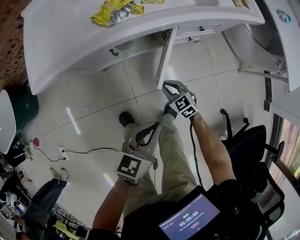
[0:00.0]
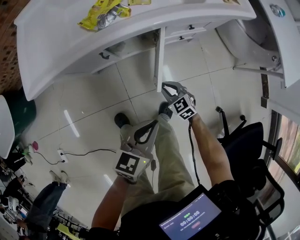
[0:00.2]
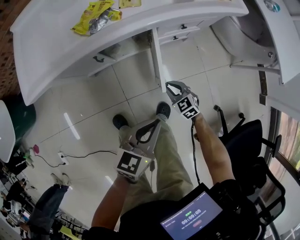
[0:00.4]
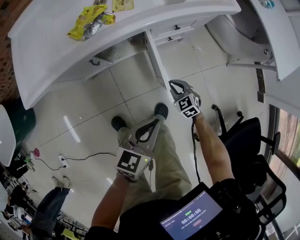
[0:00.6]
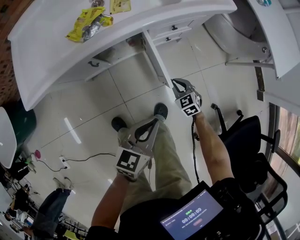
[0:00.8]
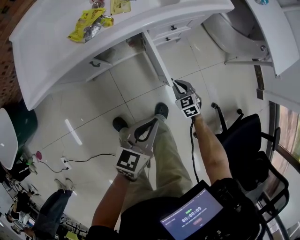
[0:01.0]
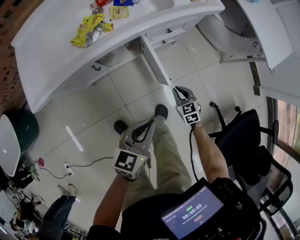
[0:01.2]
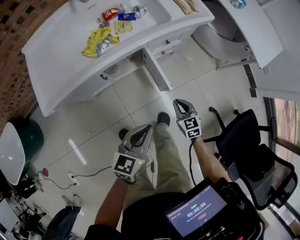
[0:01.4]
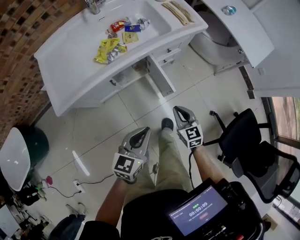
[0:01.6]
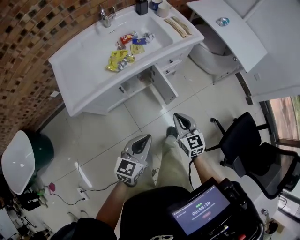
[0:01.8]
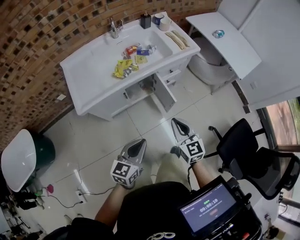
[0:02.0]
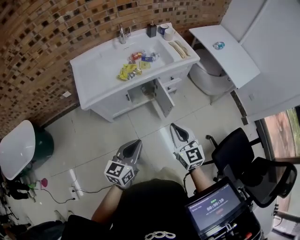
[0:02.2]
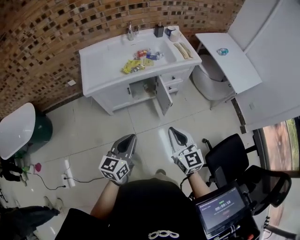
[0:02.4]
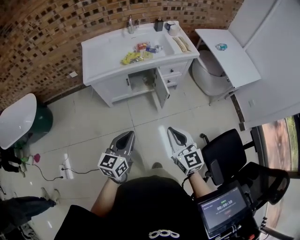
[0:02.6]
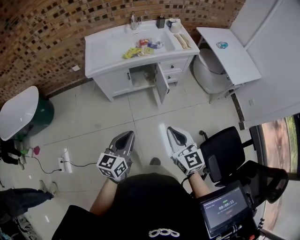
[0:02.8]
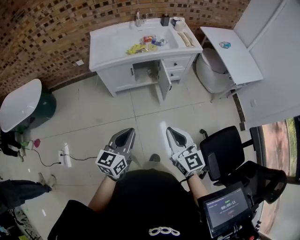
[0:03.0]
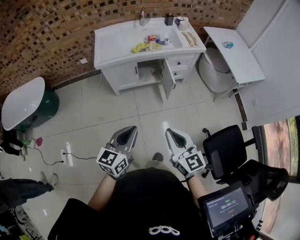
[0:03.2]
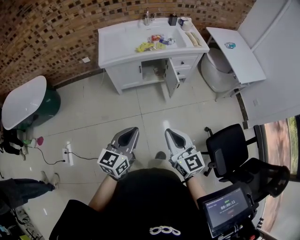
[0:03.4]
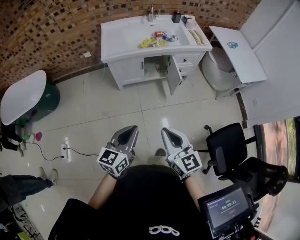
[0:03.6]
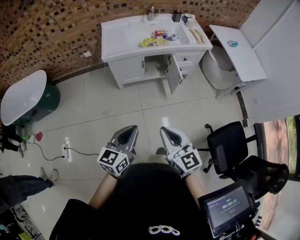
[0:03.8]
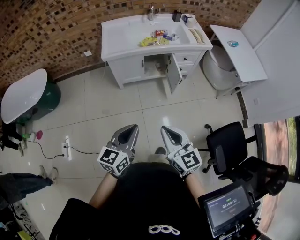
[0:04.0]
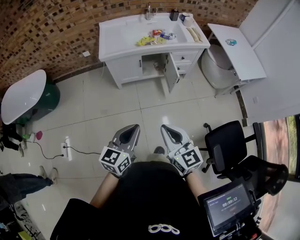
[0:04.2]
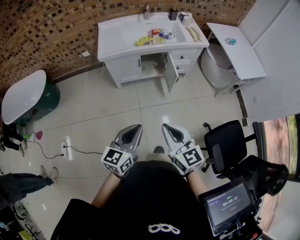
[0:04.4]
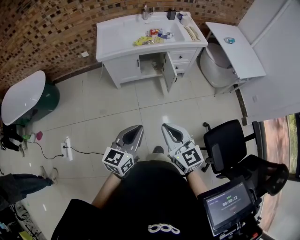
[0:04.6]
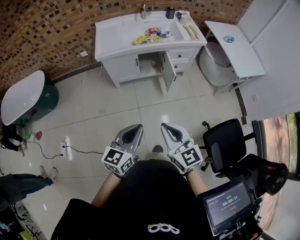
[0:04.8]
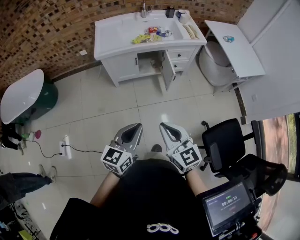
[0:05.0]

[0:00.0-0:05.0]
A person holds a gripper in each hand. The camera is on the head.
0:00.0 to 0:01.6: The left gripper shifts about 15 cm upward. The right gripper moves upward, some 25 cm, and swivels approximately 40 degrees.
0:01.6 to 0:03.4: Both grippers move backward and upward, about 50 cm. The left gripper turns by roughly 20 degrees; the right gripper swivels roughly 30 degrees.
0:03.4 to 0:05.0: The left gripper ends up roughly 5 cm from where it was.

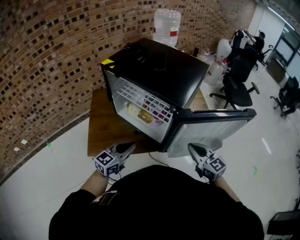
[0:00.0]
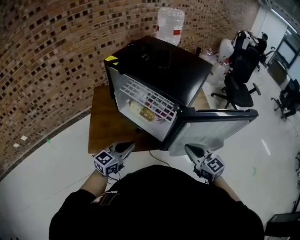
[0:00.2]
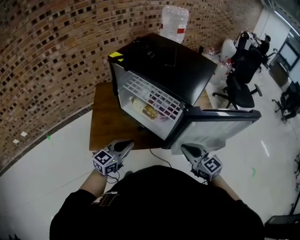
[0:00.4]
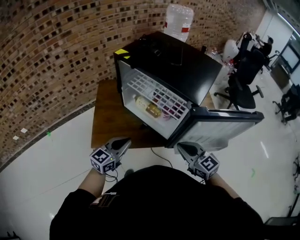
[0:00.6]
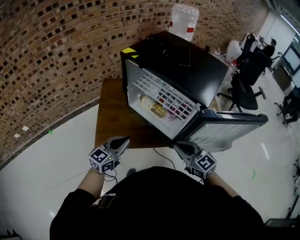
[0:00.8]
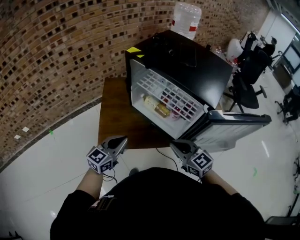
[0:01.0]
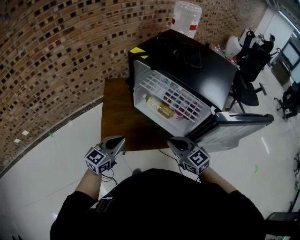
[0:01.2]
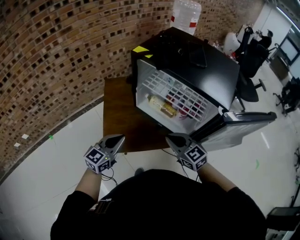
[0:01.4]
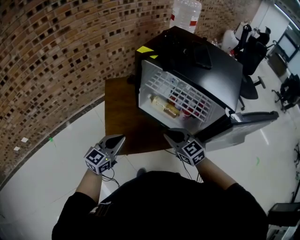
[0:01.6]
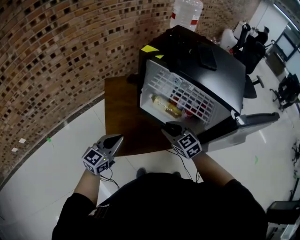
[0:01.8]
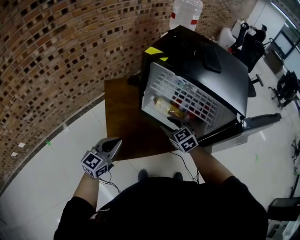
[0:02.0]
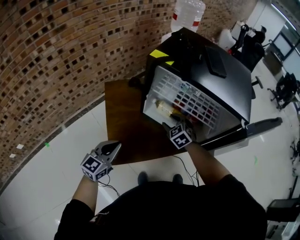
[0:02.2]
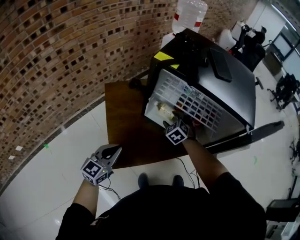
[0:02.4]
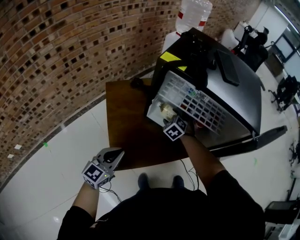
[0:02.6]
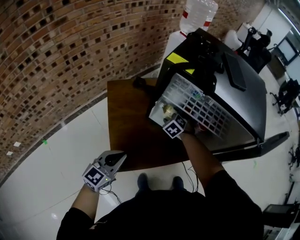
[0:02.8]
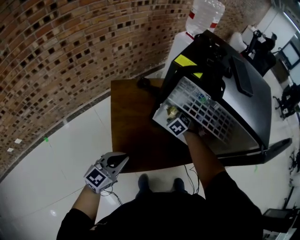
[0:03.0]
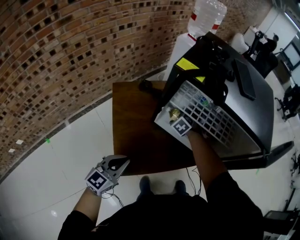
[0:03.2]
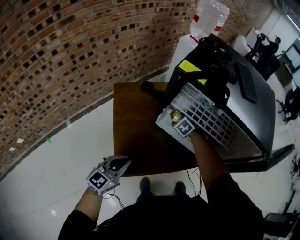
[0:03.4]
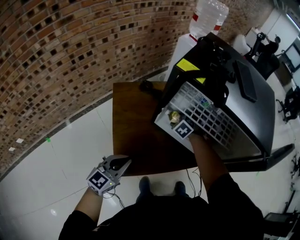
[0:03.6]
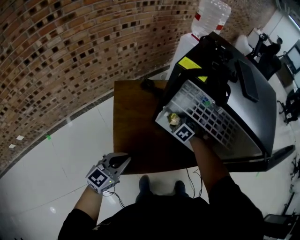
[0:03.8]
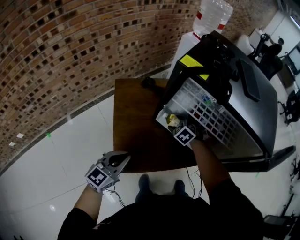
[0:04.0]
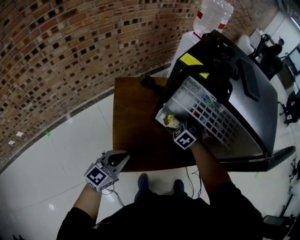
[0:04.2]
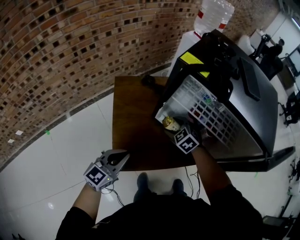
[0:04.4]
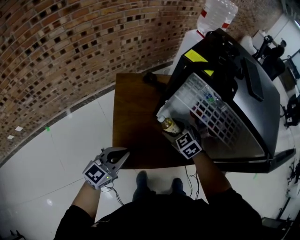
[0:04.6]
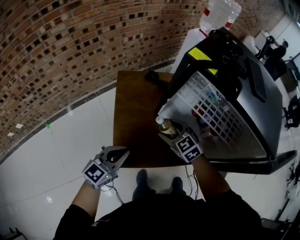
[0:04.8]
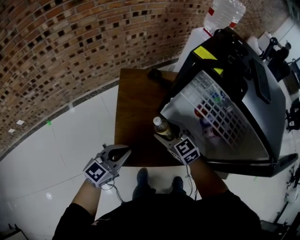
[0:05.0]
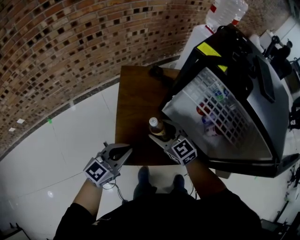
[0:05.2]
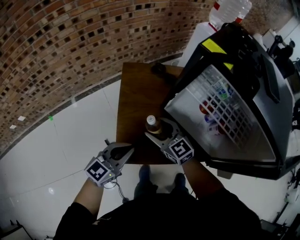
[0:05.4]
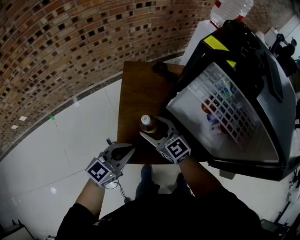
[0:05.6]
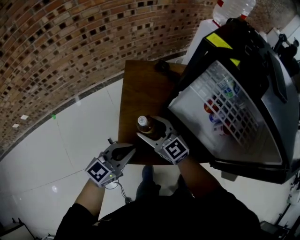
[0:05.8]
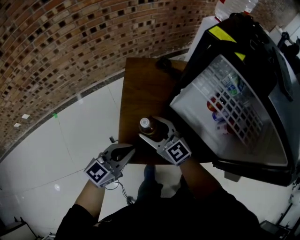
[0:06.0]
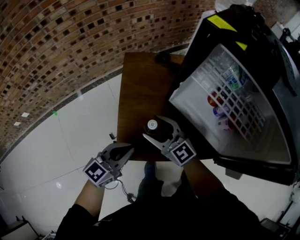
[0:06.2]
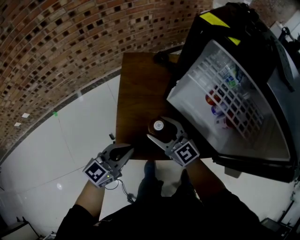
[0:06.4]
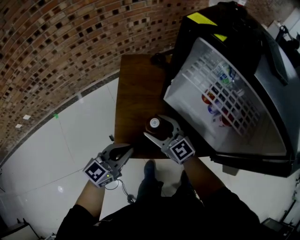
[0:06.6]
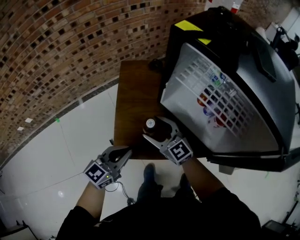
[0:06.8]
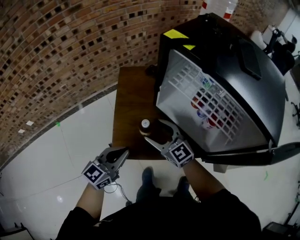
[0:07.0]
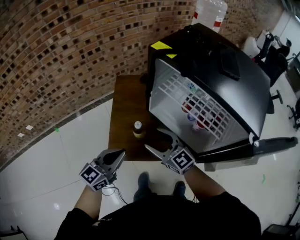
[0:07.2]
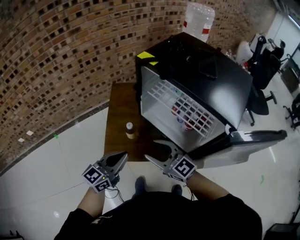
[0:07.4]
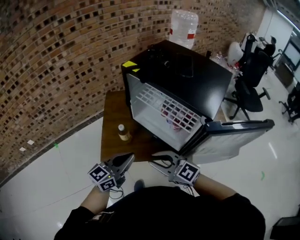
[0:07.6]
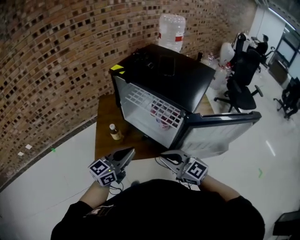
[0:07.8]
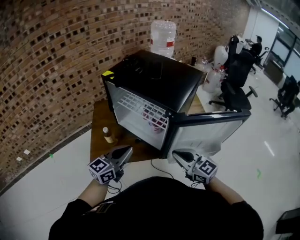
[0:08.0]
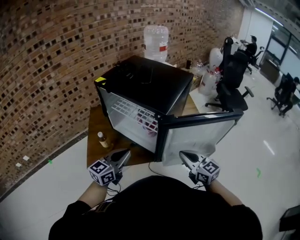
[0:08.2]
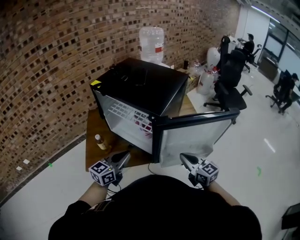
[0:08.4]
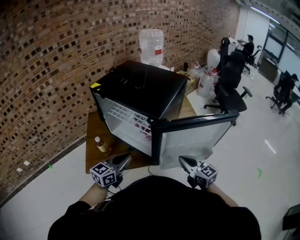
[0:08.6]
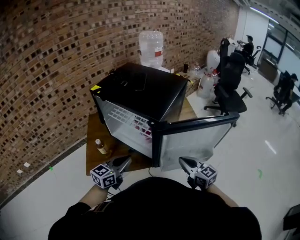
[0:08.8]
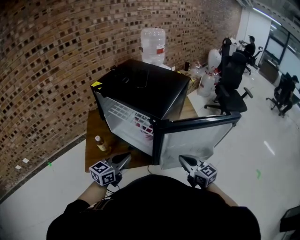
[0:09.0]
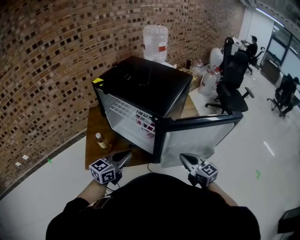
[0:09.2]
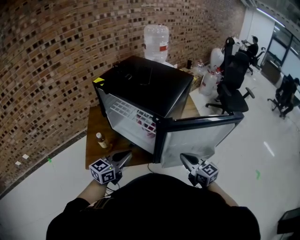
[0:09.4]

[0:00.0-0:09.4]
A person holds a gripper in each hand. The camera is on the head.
0:00.0 to 0:01.6: Both grippers travel together to the left, roughly 25 cm.
0:01.6 to 0:03.2: The left gripper shifts approximately 10 cm to the left and downward; the right gripper shifts some 35 cm forward and downward, tips its fingers downward by some 40 degrees, and opens up.
0:03.2 to 0:04.8: The right gripper goes approximately 20 cm backward, to the left and upward, and turns by about 40 degrees.
0:04.8 to 0:06.2: The right gripper heads to the left, covering some 10 cm, and points its fingers some 30 degrees further upward; the left gripper changes place by roughly 5 cm.
0:06.2 to 0:07.8: The right gripper is displaced backward, to the right and upward by roughly 40 cm, and closes up; the left gripper shifts roughly 35 cm to the right, upward and backward.
0:07.8 to 0:09.4: The right gripper is displaced to the right by approximately 20 cm, and turns by roughly 30 degrees. The left gripper goes about 10 cm to the right.

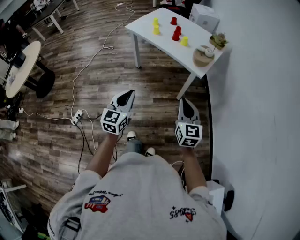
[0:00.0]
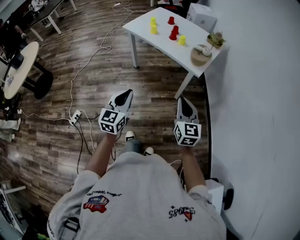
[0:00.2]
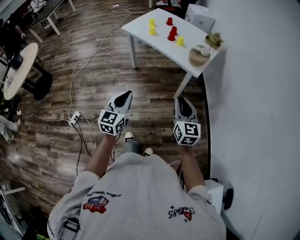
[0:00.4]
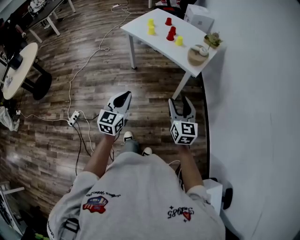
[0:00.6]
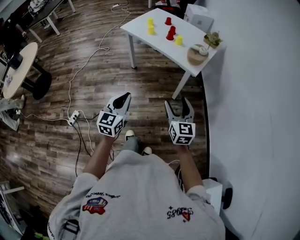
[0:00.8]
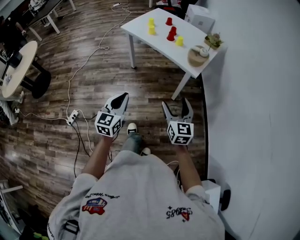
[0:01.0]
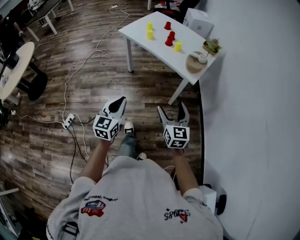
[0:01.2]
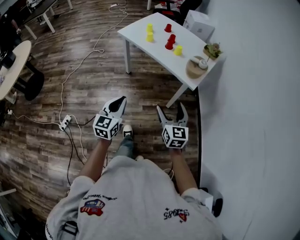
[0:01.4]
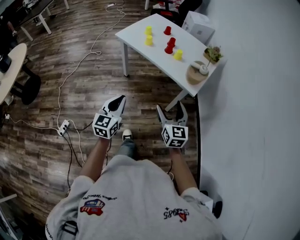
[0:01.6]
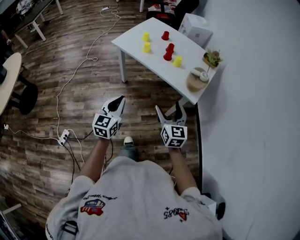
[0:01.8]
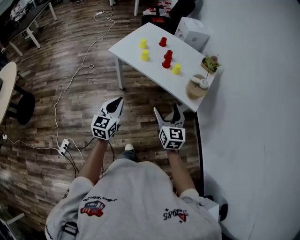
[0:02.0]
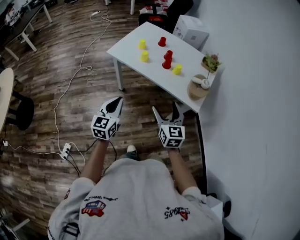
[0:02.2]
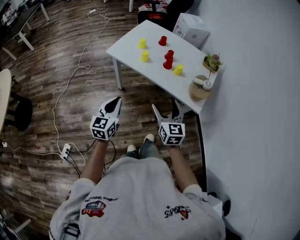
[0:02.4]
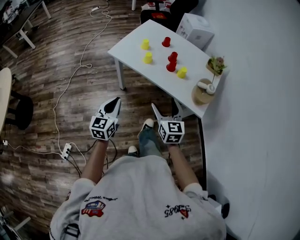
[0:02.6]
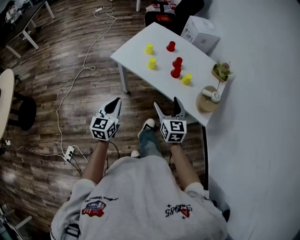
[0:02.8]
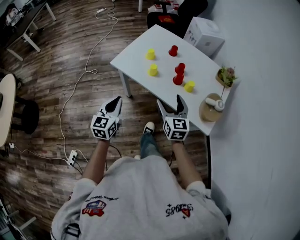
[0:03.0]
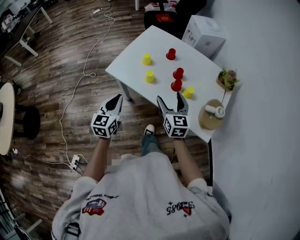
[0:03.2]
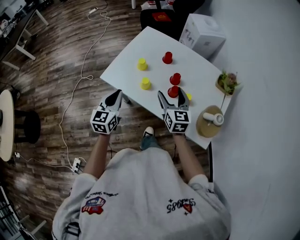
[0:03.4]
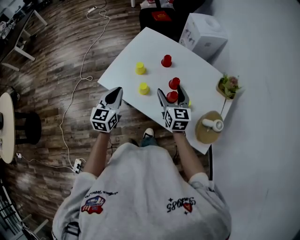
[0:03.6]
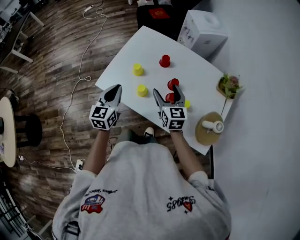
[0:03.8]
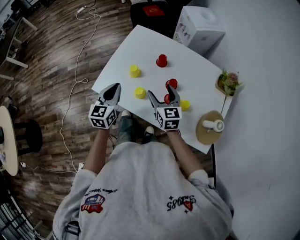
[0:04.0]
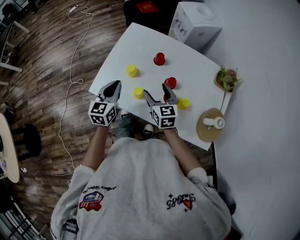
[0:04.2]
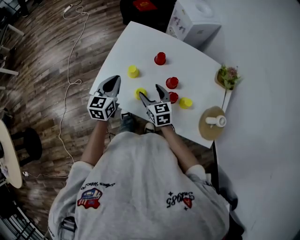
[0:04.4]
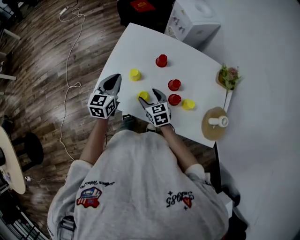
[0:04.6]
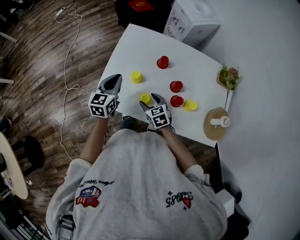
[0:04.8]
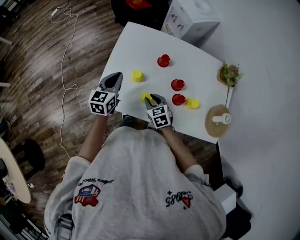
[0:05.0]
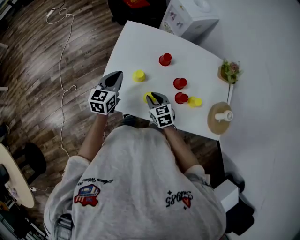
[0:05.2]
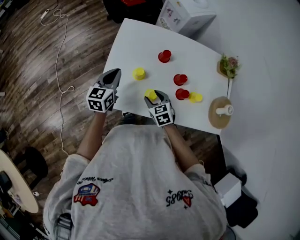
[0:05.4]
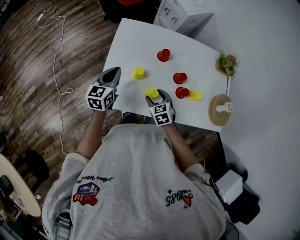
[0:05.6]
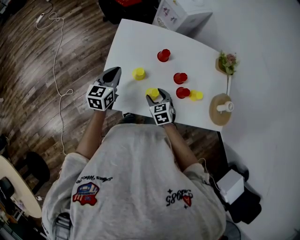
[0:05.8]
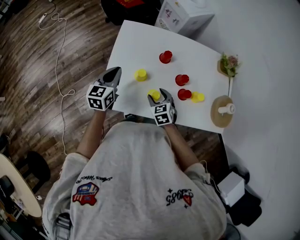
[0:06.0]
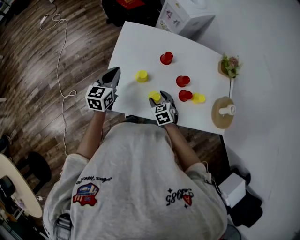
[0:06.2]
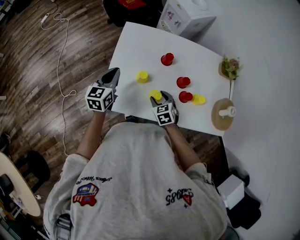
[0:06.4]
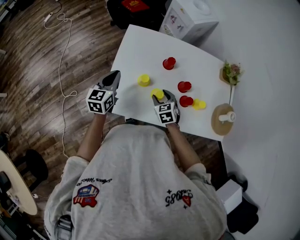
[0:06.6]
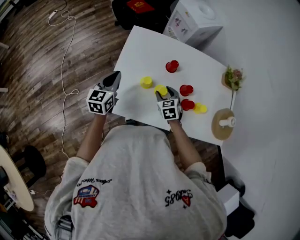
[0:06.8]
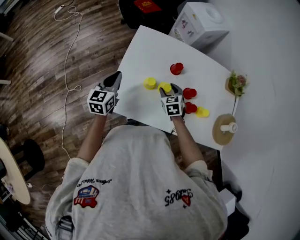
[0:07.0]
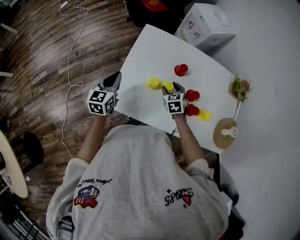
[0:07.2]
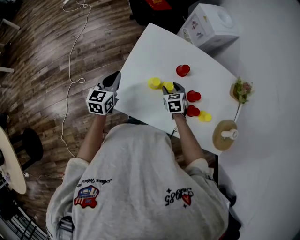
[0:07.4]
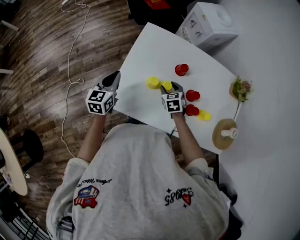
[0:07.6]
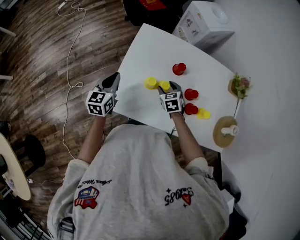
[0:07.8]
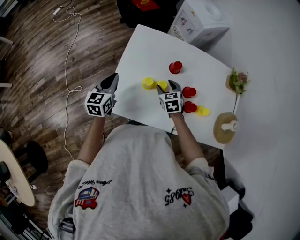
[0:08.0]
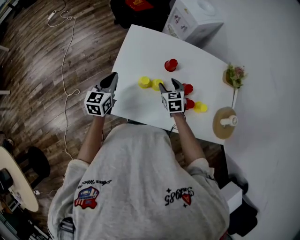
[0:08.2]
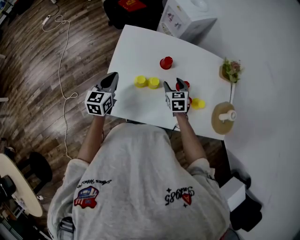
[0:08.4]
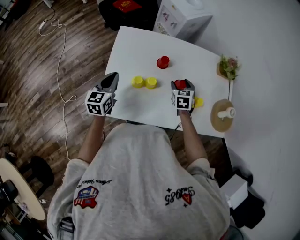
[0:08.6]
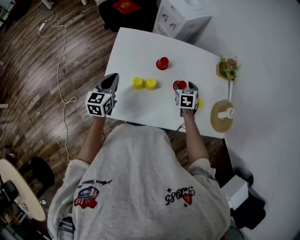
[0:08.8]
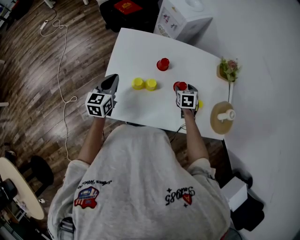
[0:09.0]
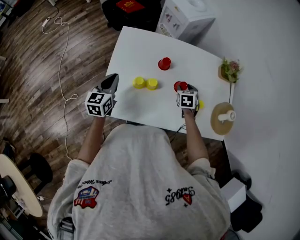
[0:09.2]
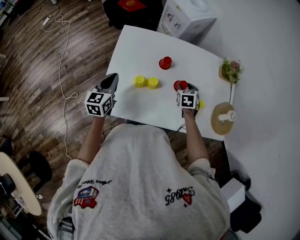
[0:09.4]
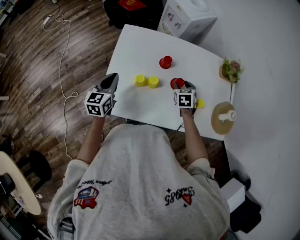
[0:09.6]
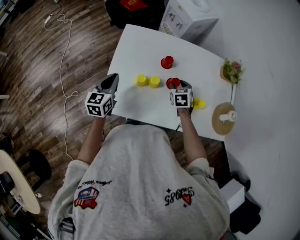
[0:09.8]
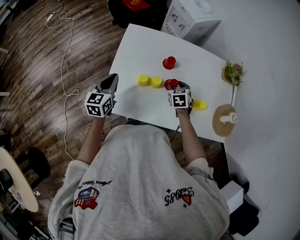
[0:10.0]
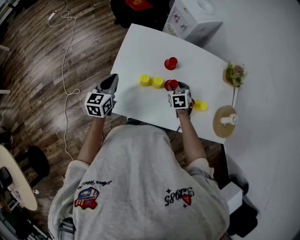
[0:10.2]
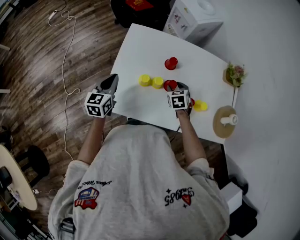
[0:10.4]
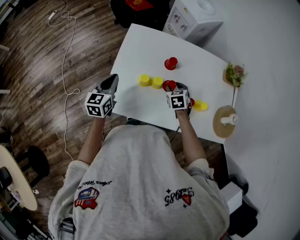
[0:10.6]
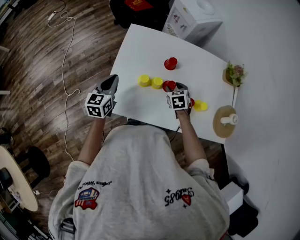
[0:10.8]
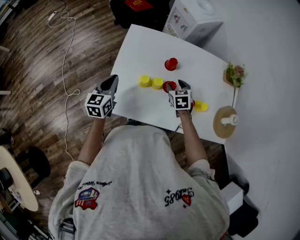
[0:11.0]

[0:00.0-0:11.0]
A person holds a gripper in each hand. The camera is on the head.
0:00.0 to 0:01.6: The two grippers go some 15 cm forward and to the left. The right gripper opens.
0:01.6 to 0:03.2: The two grippers travel together, forward, roughly 50 cm.
0:03.2 to 0:04.8: The left gripper shifts some 35 cm forward. Meanwhile the right gripper heads forward, downward and to the left, covering roughly 30 cm, and turns by some 30 degrees.
0:04.8 to 0:06.2: The right gripper closes and opens again. Meanwhile the left gripper travels to the left by about 5 cm.
0:06.2 to 0:07.8: The left gripper moves to the left, roughly 5 cm; the right gripper shifts about 10 cm forward.
0:07.8 to 0:09.4: The right gripper shifts about 20 cm to the right, and swivels some 20 degrees; the left gripper goes about 5 cm to the right.
0:09.4 to 0:11.0: The right gripper is displaced to the left by roughly 10 cm.
